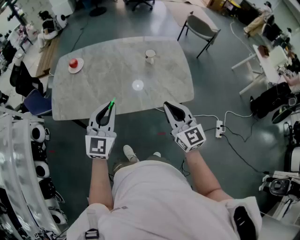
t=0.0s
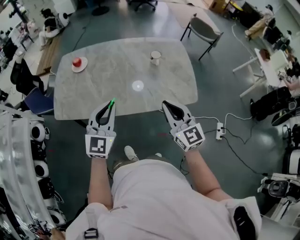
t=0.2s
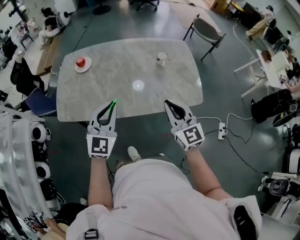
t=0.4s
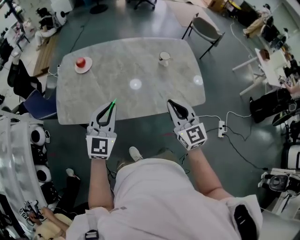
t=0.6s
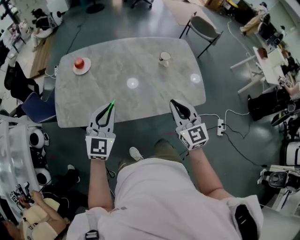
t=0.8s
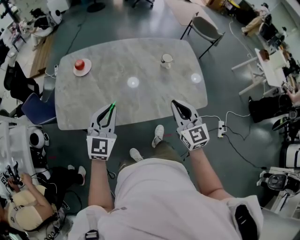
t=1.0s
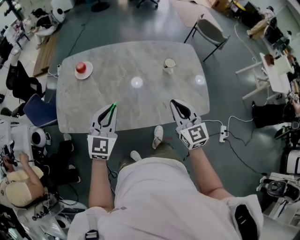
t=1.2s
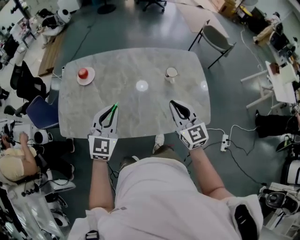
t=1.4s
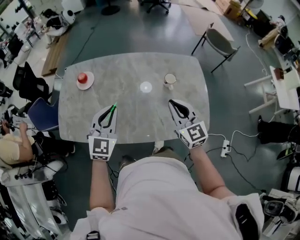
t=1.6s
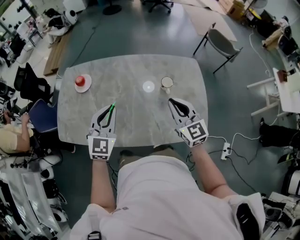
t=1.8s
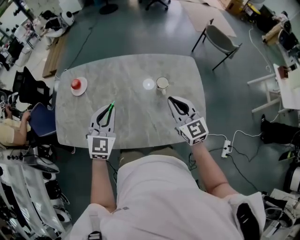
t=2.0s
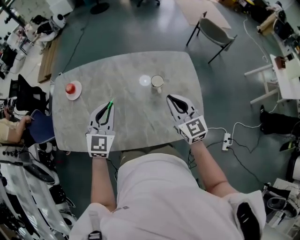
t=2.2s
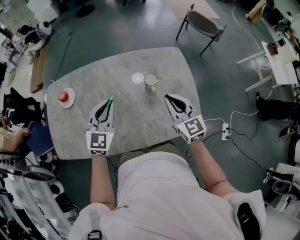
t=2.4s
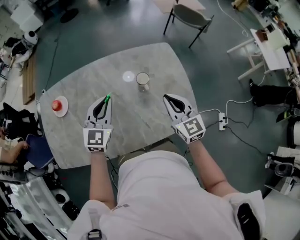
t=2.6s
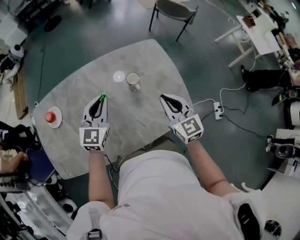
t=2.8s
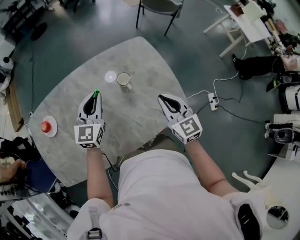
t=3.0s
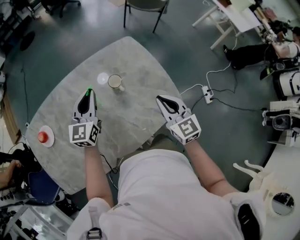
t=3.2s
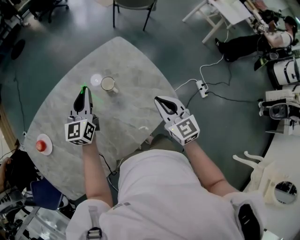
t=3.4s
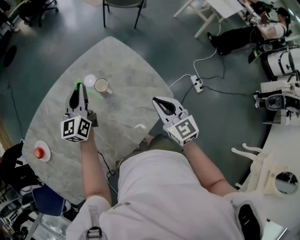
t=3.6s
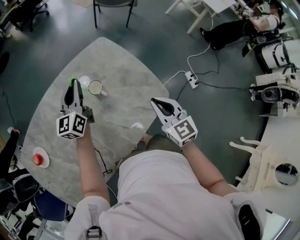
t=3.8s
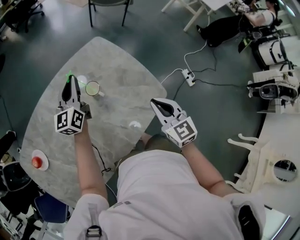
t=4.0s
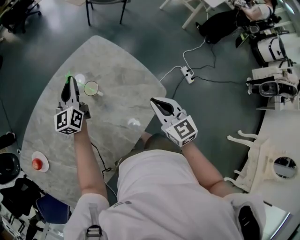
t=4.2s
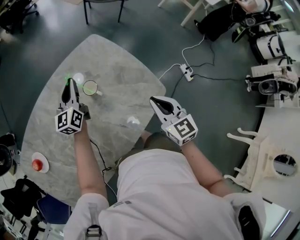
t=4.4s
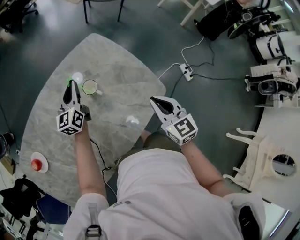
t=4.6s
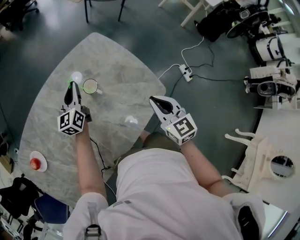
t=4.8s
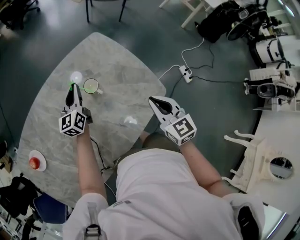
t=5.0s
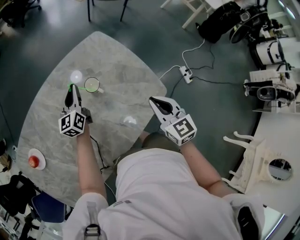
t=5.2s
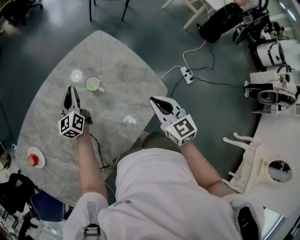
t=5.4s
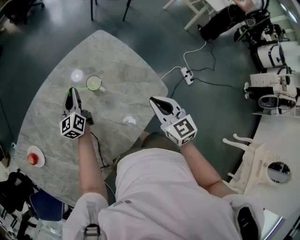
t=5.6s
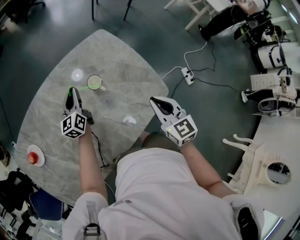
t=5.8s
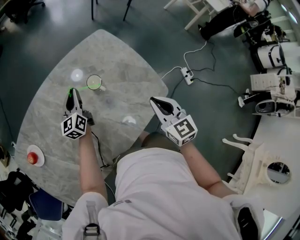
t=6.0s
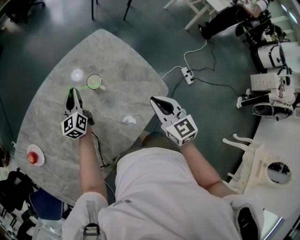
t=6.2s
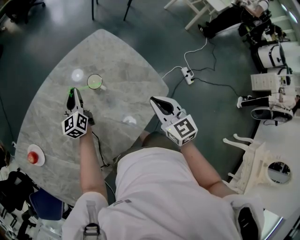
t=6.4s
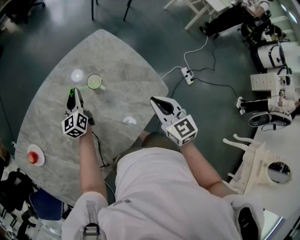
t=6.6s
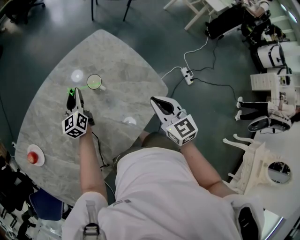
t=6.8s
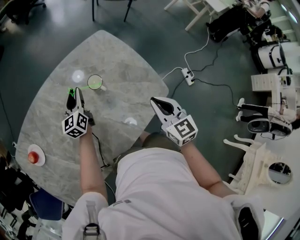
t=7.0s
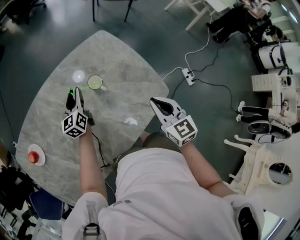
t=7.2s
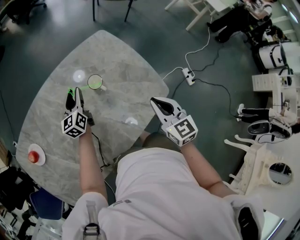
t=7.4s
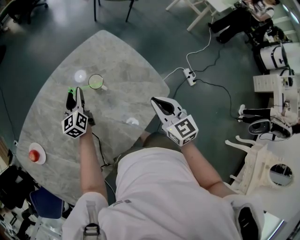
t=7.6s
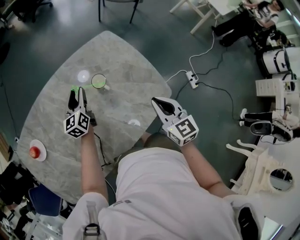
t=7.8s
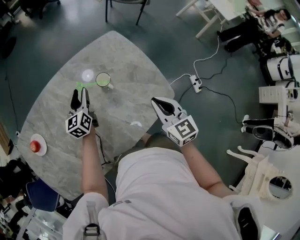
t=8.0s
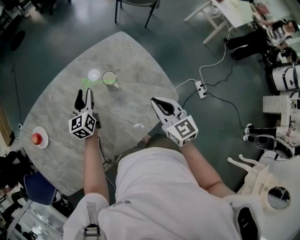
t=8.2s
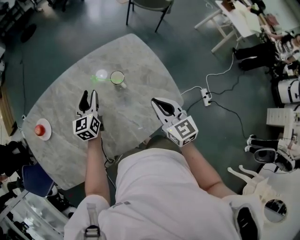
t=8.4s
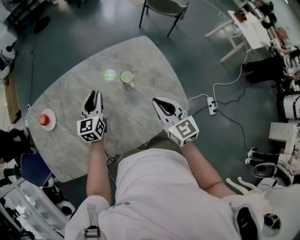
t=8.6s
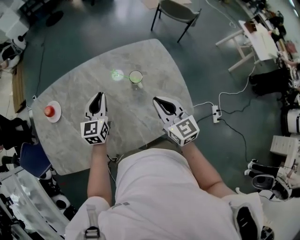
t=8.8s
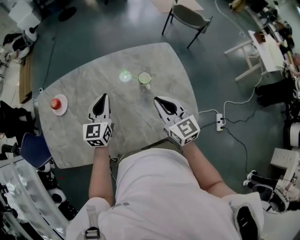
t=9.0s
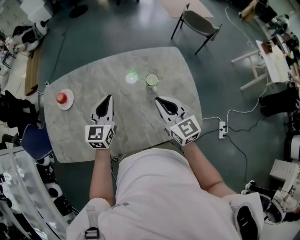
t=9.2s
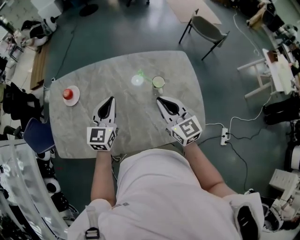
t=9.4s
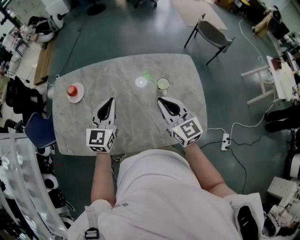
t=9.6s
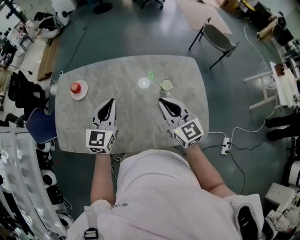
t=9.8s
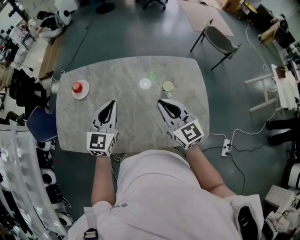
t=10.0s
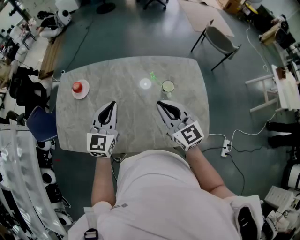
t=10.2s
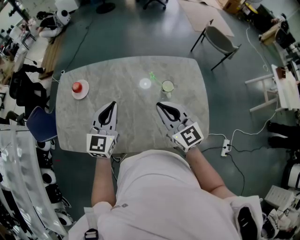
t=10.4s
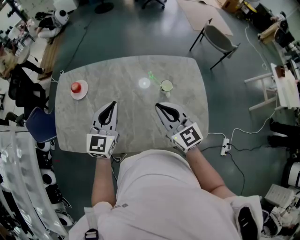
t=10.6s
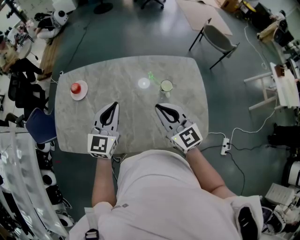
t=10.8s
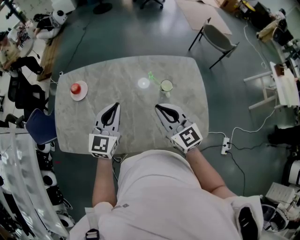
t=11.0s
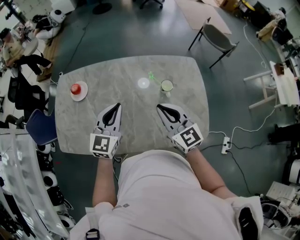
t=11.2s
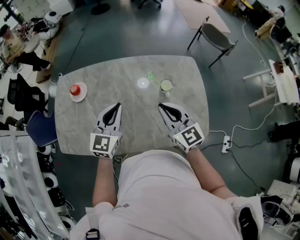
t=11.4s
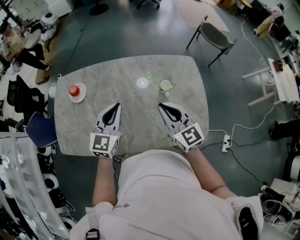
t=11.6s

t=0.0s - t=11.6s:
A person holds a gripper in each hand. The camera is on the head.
t=0.0s - t=1.4s: The right gripper heads forward, covering some 20 cm. The left gripper moves forward and to the left, about 20 cm.
t=1.4s - t=2.8s: The left gripper moves forward and to the right, approximately 25 cm; the right gripper is displaced to the right and forward by approximately 15 cm.
t=2.8s - t=4.4s: The right gripper goes some 10 cm to the right, and turns by roughly 20 degrees, while the left gripper is displaced forward by approximately 15 cm, and turns by about 30 degrees.
t=4.4s - t=5.8s: The left gripper travels downward and to the left by about 10 cm.
t=5.8s - t=7.2s: The left gripper opens.
t=7.2s - t=8.8s: The right gripper shifts roughly 10 cm to the left, and swivels approximately 30 degrees; the left gripper travels backward, upward and to the left by roughly 15 cm.
t=8.8s - t=10.2s: The left gripper travels to the left, upward and backward by roughly 15 cm; the right gripper shifts approximately 10 cm to the left and upward, and changes its angle by about 20 degrees.
t=10.2s - t=11.6s: The grippers move only a little.

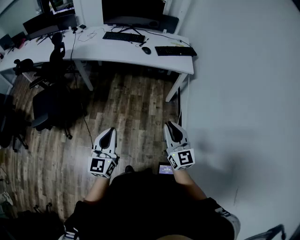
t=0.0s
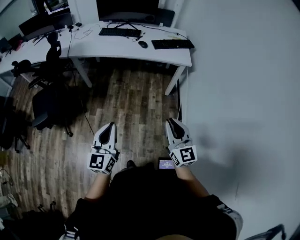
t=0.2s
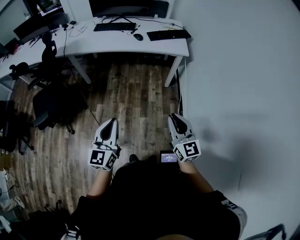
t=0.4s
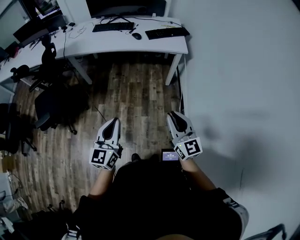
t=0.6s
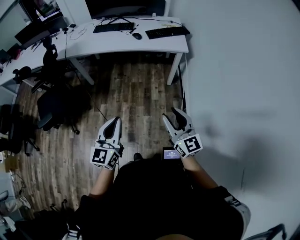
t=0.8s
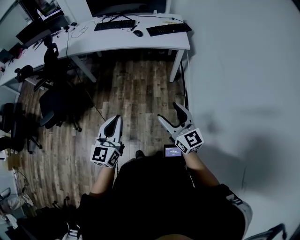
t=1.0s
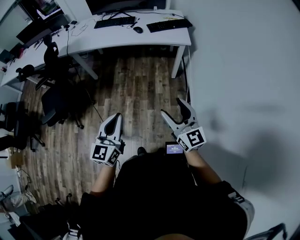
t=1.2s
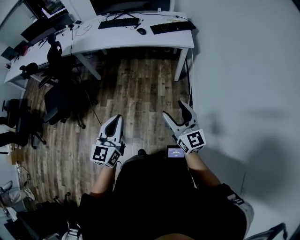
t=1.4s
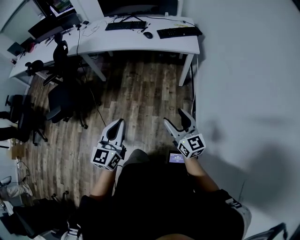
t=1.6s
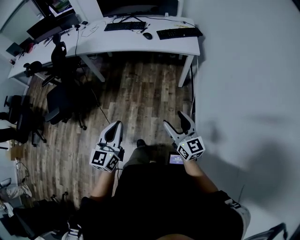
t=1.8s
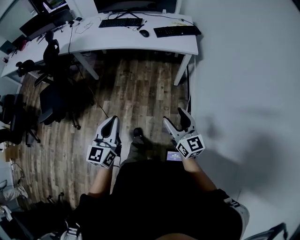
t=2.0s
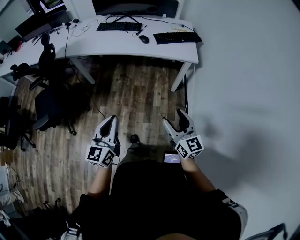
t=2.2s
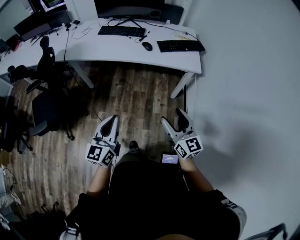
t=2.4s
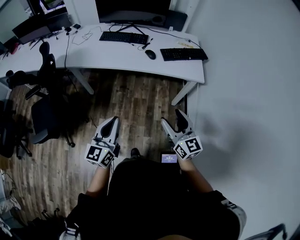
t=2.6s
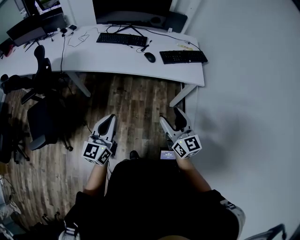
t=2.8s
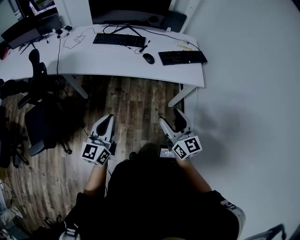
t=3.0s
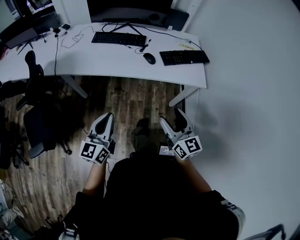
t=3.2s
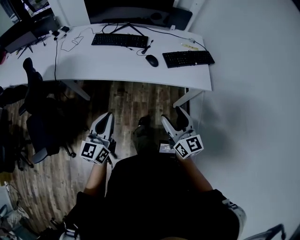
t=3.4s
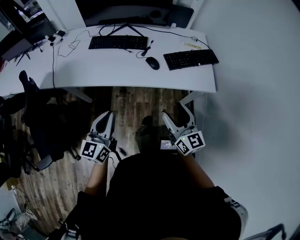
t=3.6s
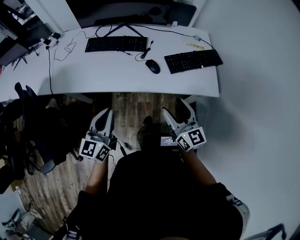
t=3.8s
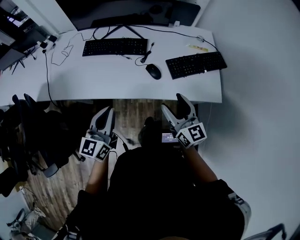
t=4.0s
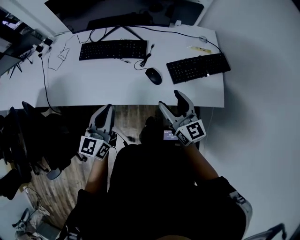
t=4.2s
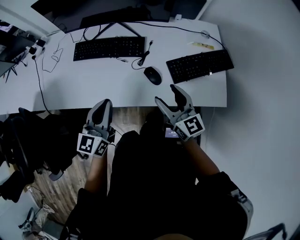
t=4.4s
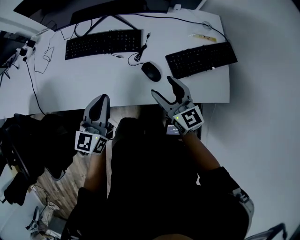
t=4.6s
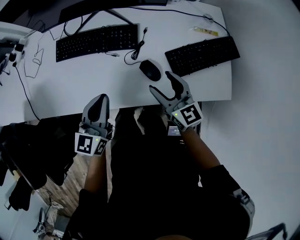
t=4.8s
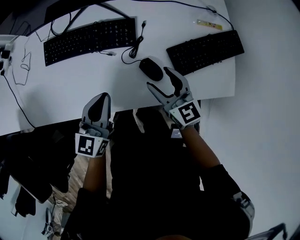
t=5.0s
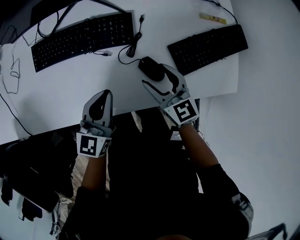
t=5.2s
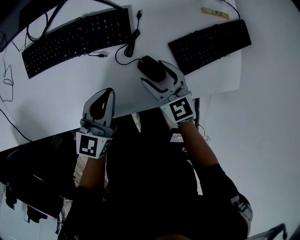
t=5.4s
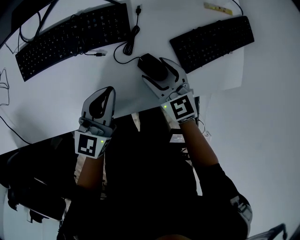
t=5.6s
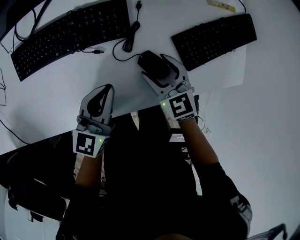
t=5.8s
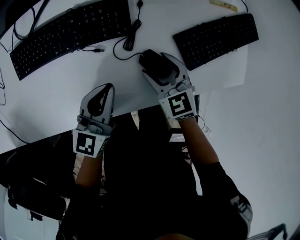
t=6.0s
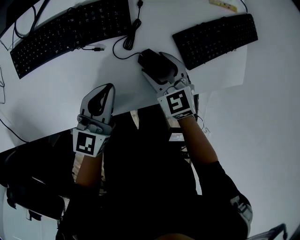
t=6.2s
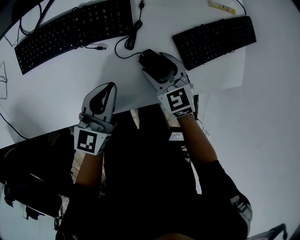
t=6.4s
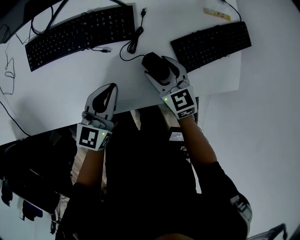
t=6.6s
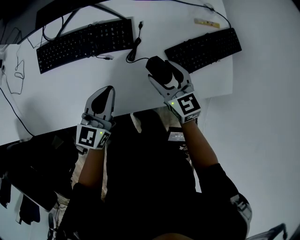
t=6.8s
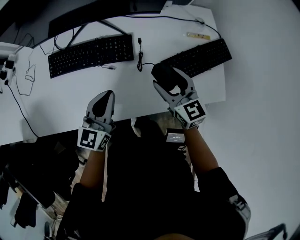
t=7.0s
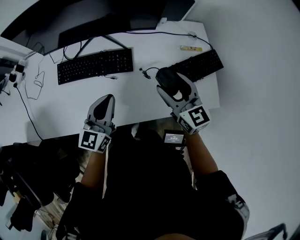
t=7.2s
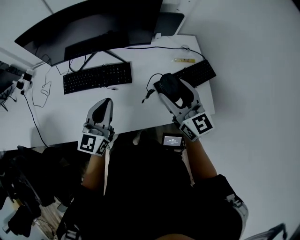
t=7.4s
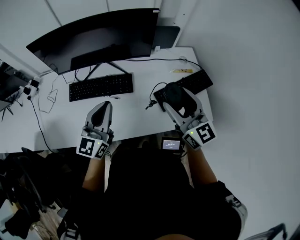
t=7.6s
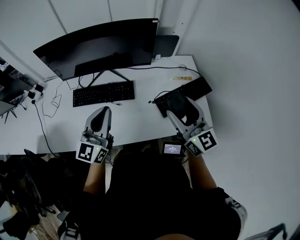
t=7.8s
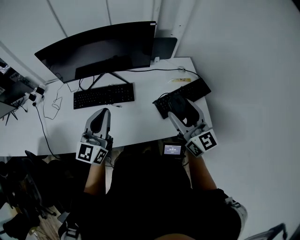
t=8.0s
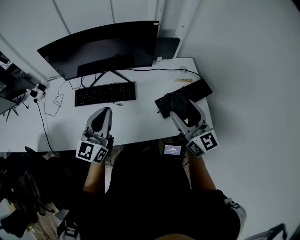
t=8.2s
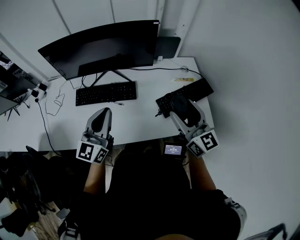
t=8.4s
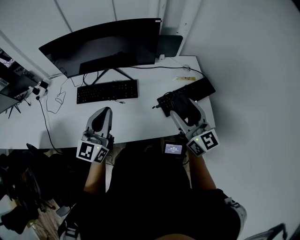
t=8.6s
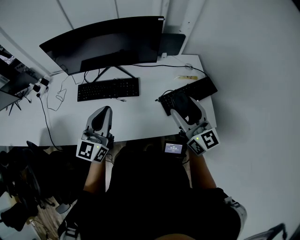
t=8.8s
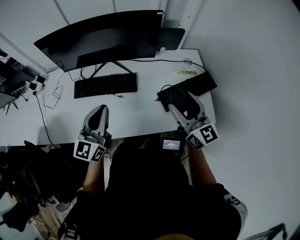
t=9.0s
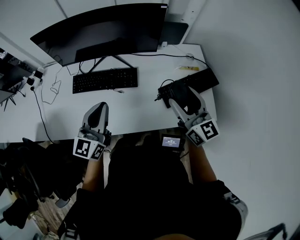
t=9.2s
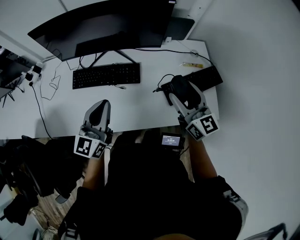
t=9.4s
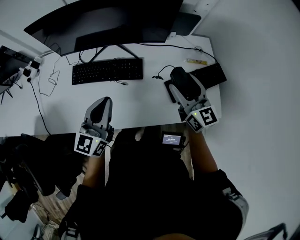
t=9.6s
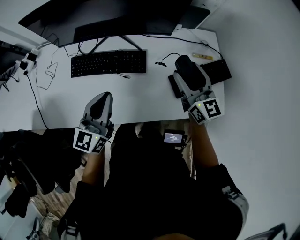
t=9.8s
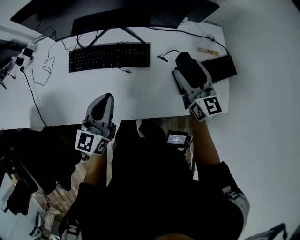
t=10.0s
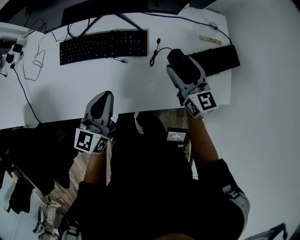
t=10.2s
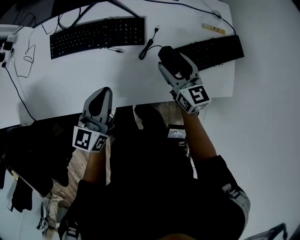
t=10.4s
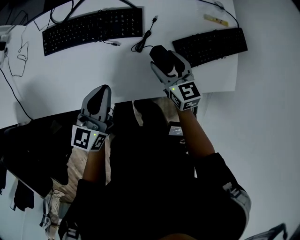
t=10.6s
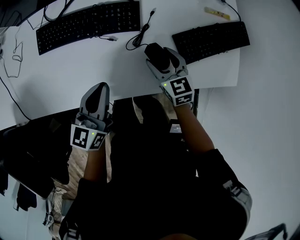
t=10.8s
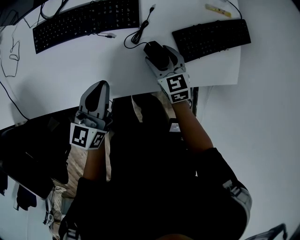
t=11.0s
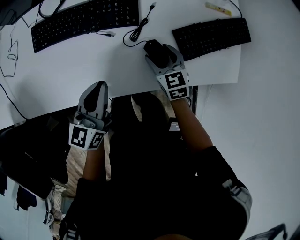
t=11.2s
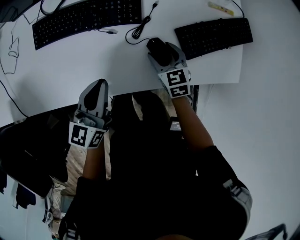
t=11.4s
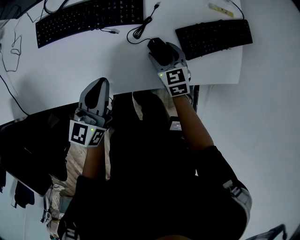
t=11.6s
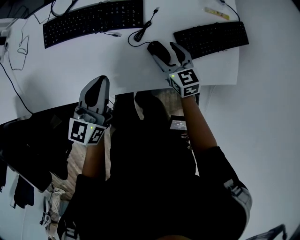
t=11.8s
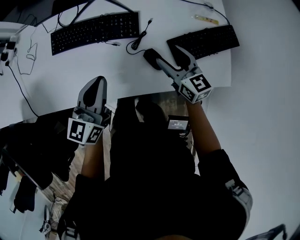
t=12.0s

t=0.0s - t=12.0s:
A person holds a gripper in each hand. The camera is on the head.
t=0.0s - t=1.6s: The left gripper moves to the right, approximately 10 cm, while the right gripper is displaced to the right and downward by some 10 cm, and opens its fingers.
t=1.6s - t=3.0s: The grippers both shift forward by about 35 cm.
t=3.0s - t=4.4s: Both grippers are carried forward, about 40 cm.
t=4.4s - t=6.0s: Both grippers travel together downward and forward, approximately 25 cm. The left gripper changes its angle by about 20 degrees. Meanwhile the right gripper tips its fingers downward by approximately 30 degrees.
t=6.0s - t=7.6s: The two grippers go some 30 cm upward. The left gripper rotates roughly 30 degrees. The right gripper angles its fingers upward, by some 40 degrees.
t=7.6s - t=9.0s: The grippers move only a little.
t=9.0s - t=10.4s: The right gripper heads downward and forward, covering some 25 cm, and turns by roughly 30 degrees. The left gripper travels downward by some 15 cm, and changes its angle by approximately 20 degrees.
t=10.4s - t=12.0s: The right gripper moves about 15 cm downward and comes back.
